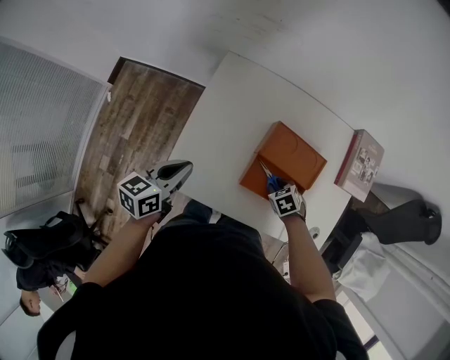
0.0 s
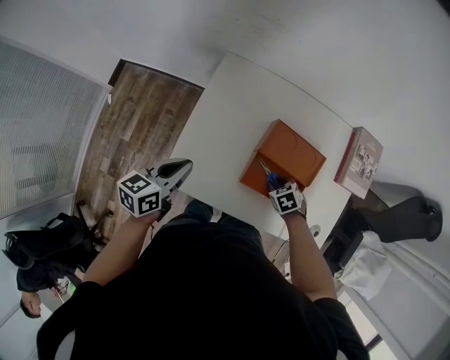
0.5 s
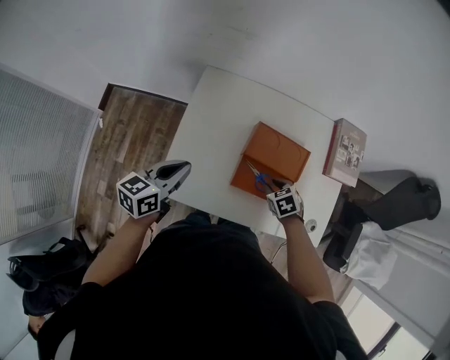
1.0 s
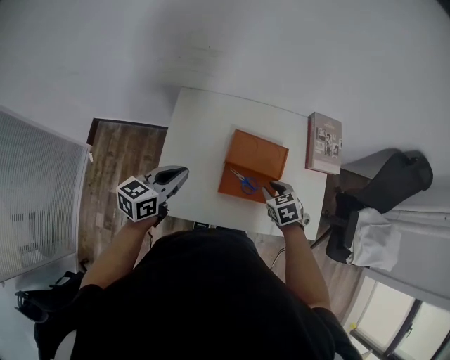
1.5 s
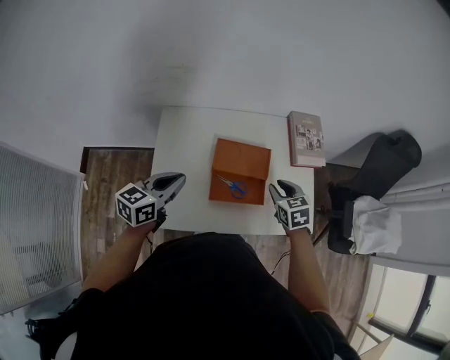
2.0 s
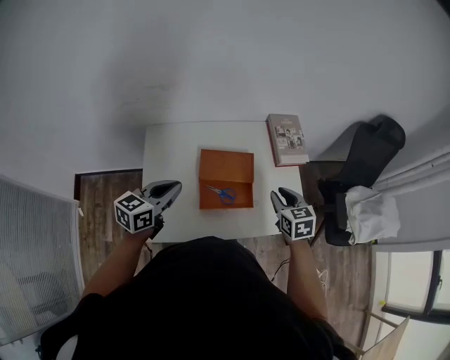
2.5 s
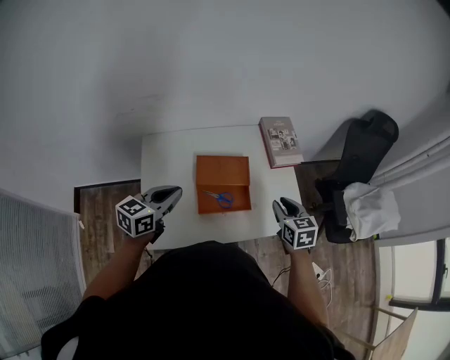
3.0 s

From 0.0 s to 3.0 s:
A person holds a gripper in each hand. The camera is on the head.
From 0.0 s to 1.5 s: The left gripper is displaced upward by some 10 cm, while the right gripper moves upward, some 15 cm, and turns by roughly 30 degrees.
From 1.5 s to 3.0 s: The left gripper heads to the right, covering roughly 5 cm. The right gripper travels to the right and upward by some 20 cm, and turns by about 40 degrees.

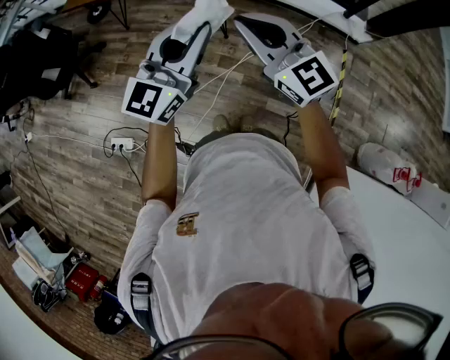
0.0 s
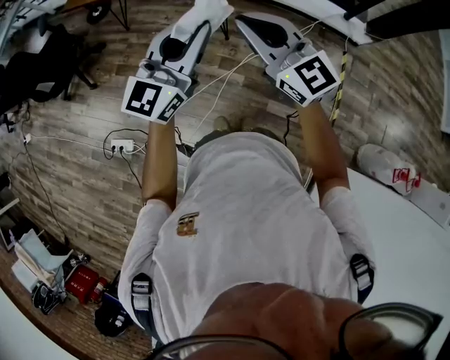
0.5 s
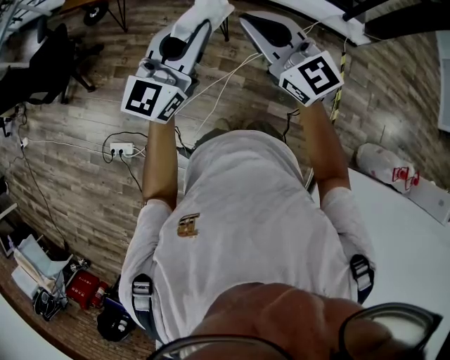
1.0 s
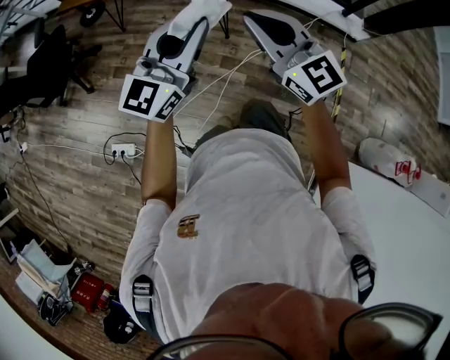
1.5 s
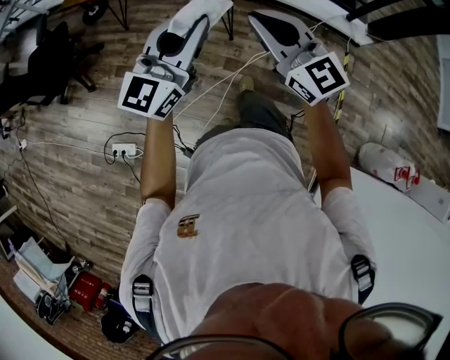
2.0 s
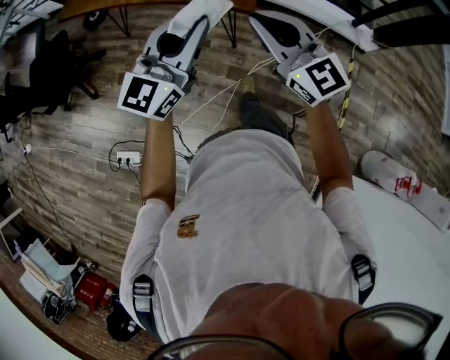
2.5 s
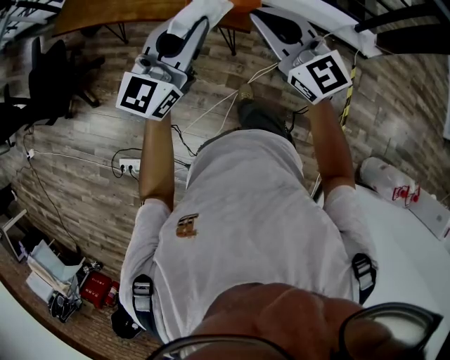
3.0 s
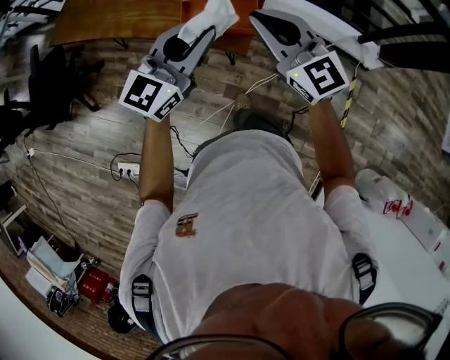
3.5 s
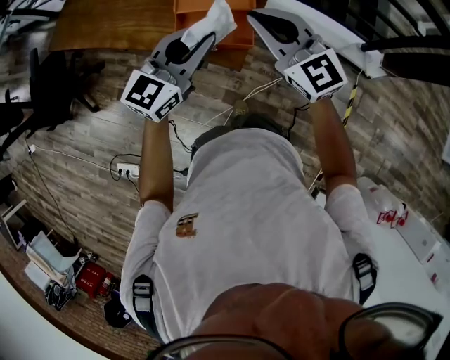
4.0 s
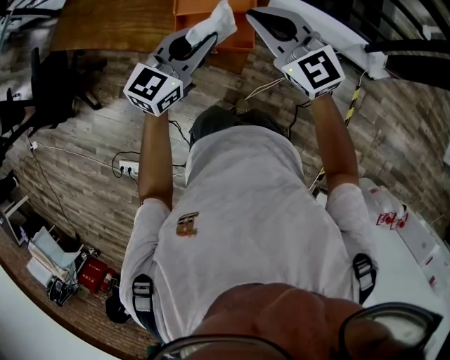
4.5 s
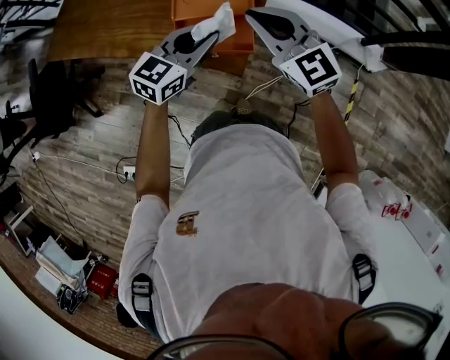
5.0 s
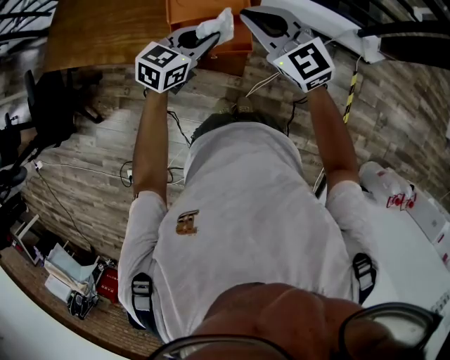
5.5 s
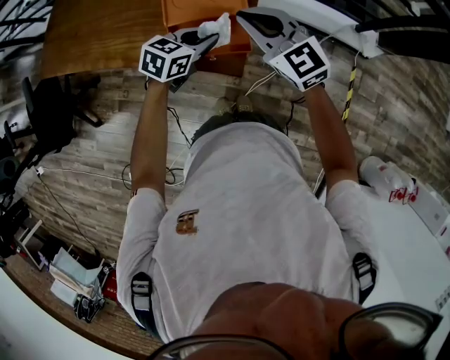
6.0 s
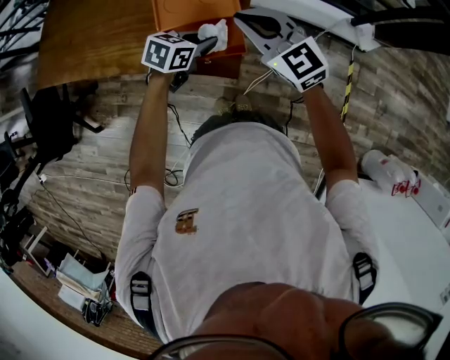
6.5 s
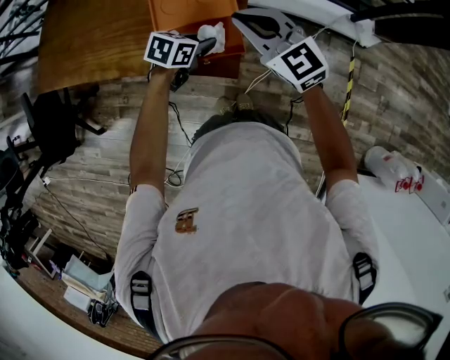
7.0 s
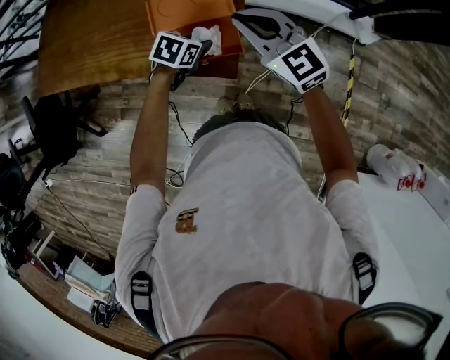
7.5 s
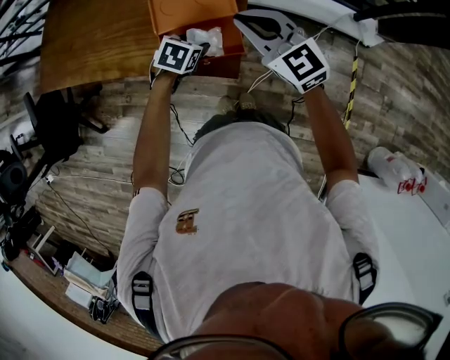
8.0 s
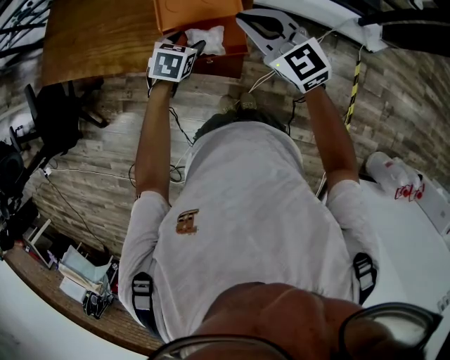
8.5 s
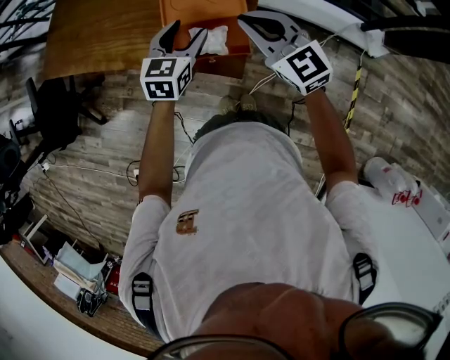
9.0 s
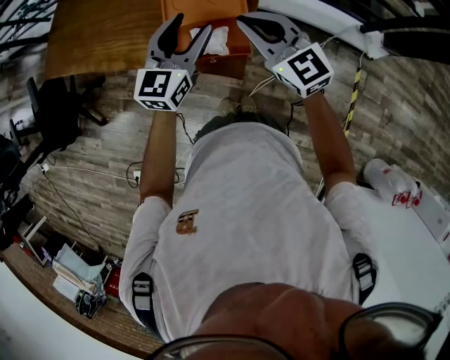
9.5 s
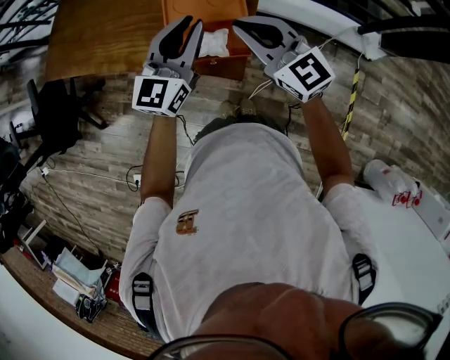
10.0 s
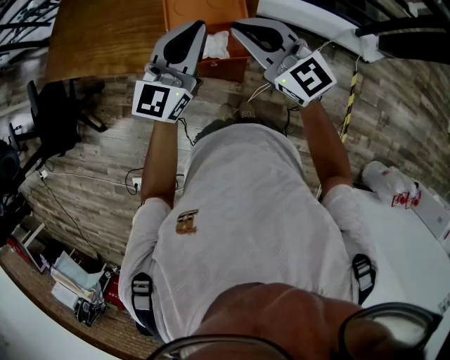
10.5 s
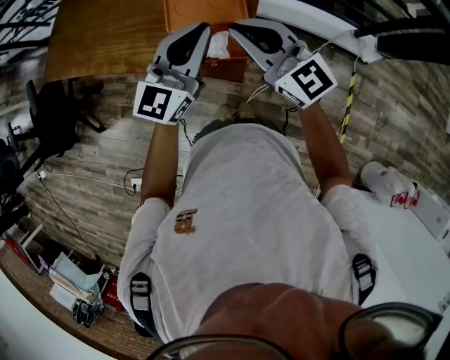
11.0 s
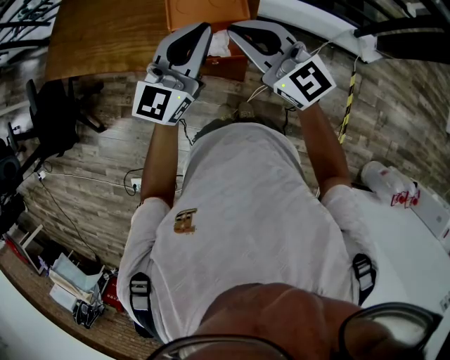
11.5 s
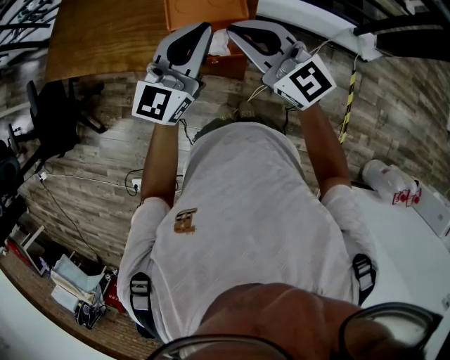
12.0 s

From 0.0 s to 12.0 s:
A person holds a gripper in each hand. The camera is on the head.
From 0.0 s to 2.0 s: Both grippers move to the left and forward, some 15 cm.
From 2.0 s to 4.0 s: The pair of grippers is taken forward, some 50 cm.
From 4.0 s to 6.0 s: The left gripper shifts roughly 15 cm downward and forward, and turns by about 40 degrees; the right gripper heads forward, covering some 5 cm.
From 6.0 s to 8.0 s: The left gripper travels downward by some 10 cm, turns by approximately 30 degrees, and opens.
From 8.0 s to 10.0 s: The right gripper ends up about 5 cm from where it was. The left gripper is displaced upward by about 25 cm, tilts its fingers roughly 60 degrees upward, and closes its fingers.
From 10.0 s to 12.0 s: The left gripper changes place by roughly 5 cm. Meanwhile the right gripper ends up roughly 5 cm from where it was.

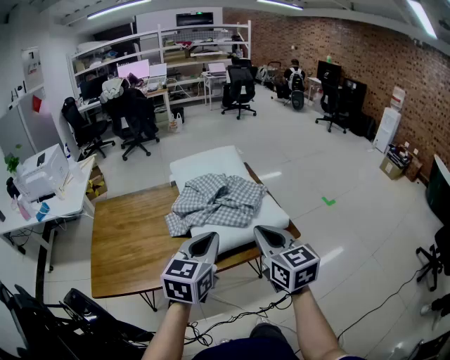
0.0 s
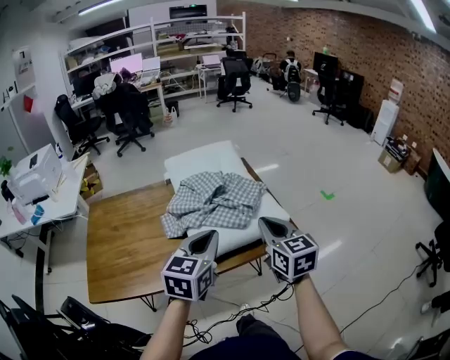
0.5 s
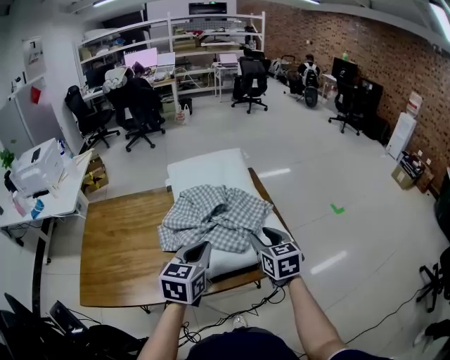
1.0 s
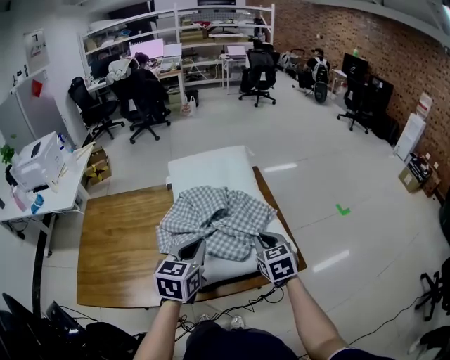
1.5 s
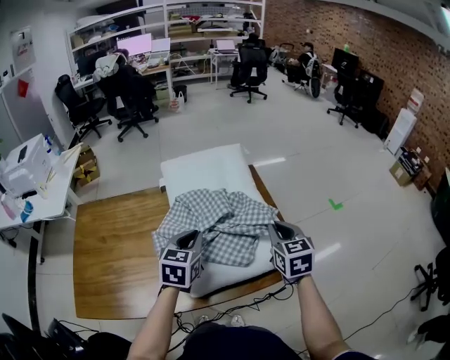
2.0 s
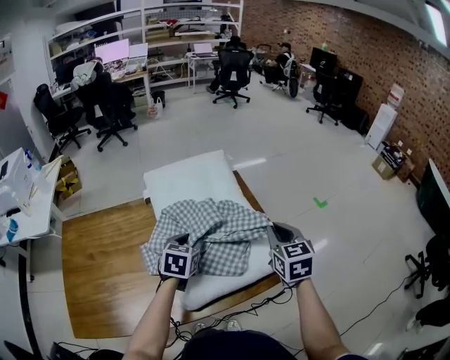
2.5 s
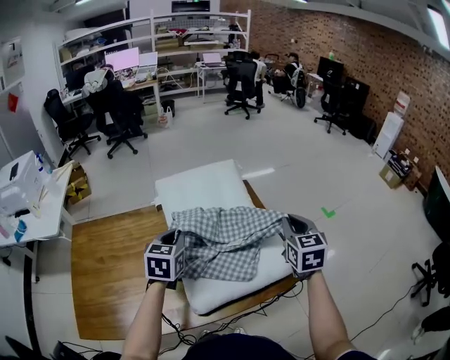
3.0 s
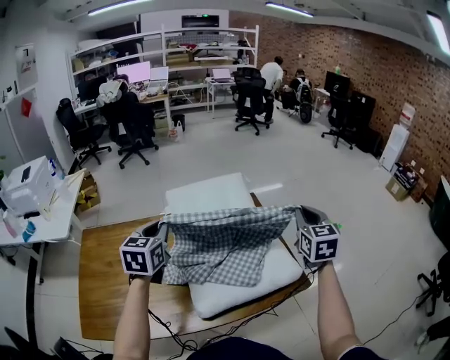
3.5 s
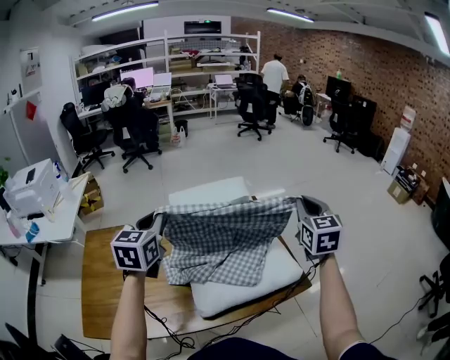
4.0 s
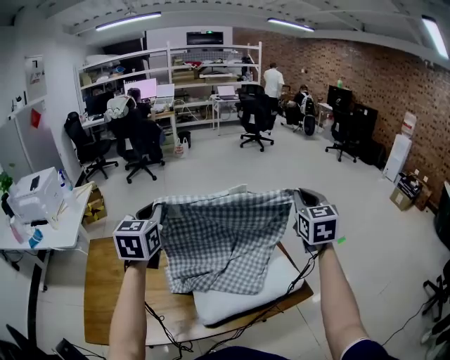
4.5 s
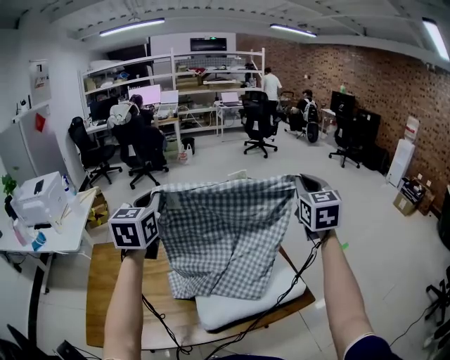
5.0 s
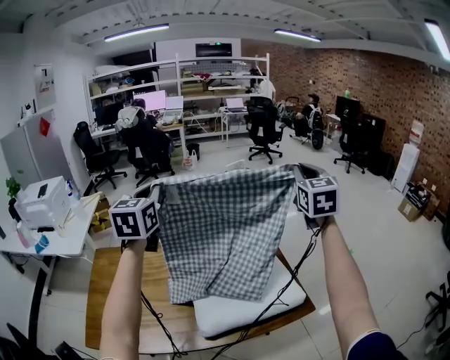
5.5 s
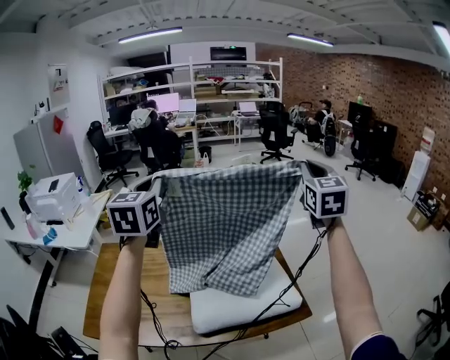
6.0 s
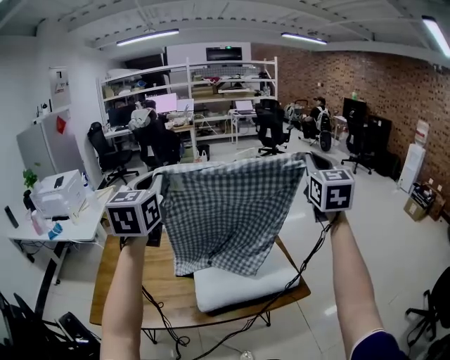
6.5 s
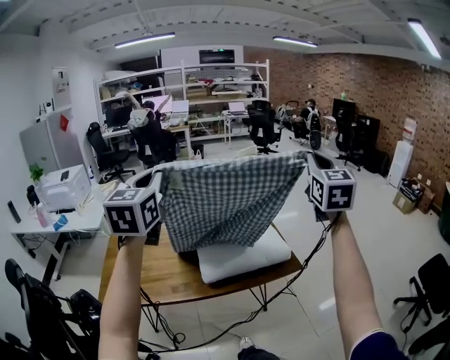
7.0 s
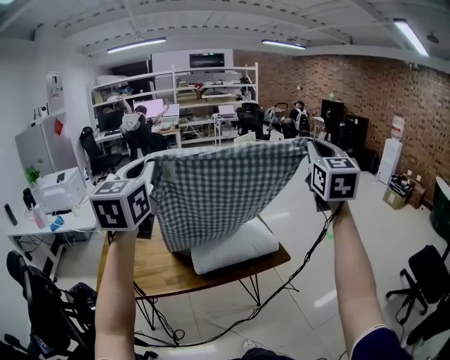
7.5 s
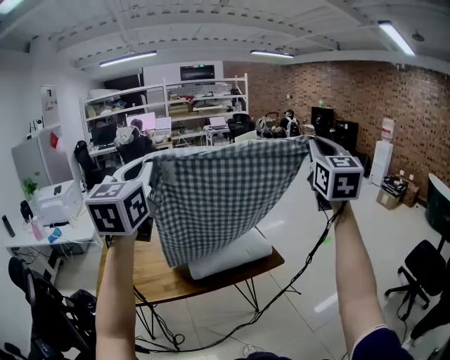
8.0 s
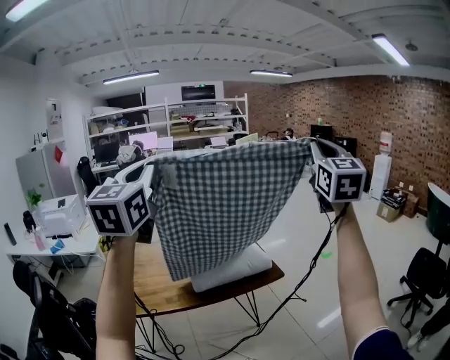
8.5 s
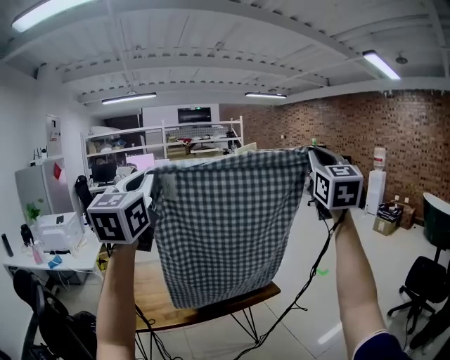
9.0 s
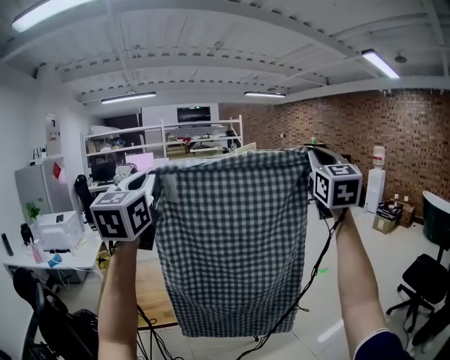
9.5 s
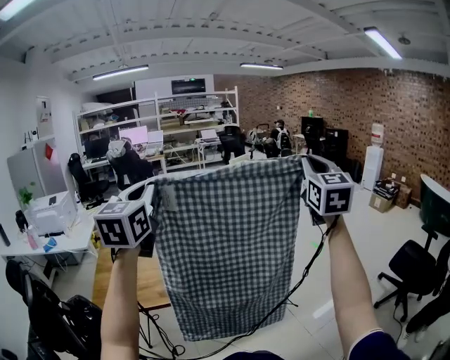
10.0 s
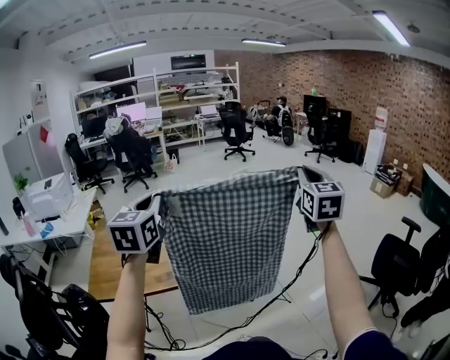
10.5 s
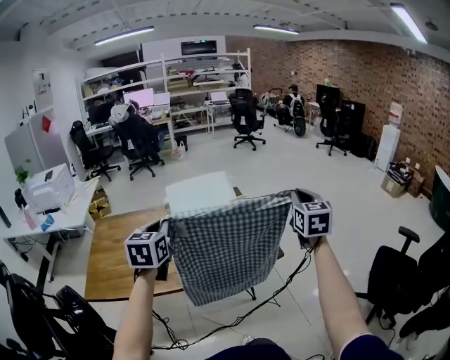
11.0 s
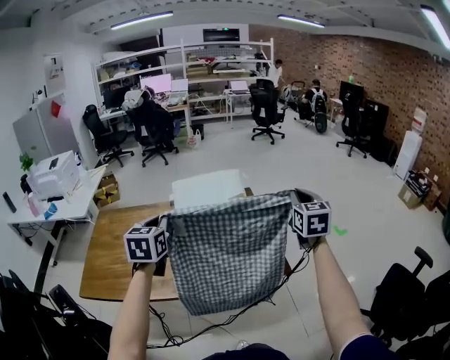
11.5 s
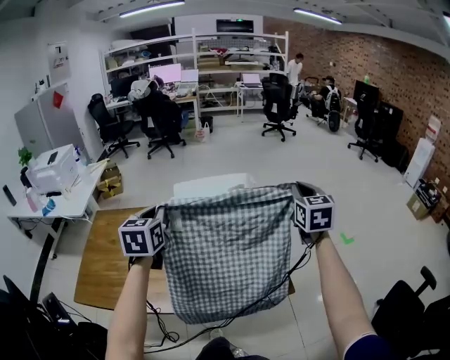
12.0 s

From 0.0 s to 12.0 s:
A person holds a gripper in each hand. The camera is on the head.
From 0.0 s to 2.0 s: The two grippers go roughly 25 cm forward and downward. The right gripper opens and closes again.
From 2.0 s to 4.0 s: The right gripper is displaced upward by some 15 cm, while the left gripper travels upward and to the left by some 20 cm, and opens and closes again.
From 4.0 s to 6.0 s: The right gripper heads upward and forward, covering approximately 20 cm. Meanwhile the left gripper is displaced upward by roughly 20 cm.
From 6.0 s to 8.0 s: The grippers both shift backward by about 35 cm.
From 8.0 s to 10.0 s: The right gripper reaches approximately 10 cm upward, then returns.
From 10.0 s to 12.0 s: Both grippers travel together forward and downward, about 40 cm. The left gripper swivels some 30 degrees. Meanwhile the right gripper changes its angle by some 30 degrees.
